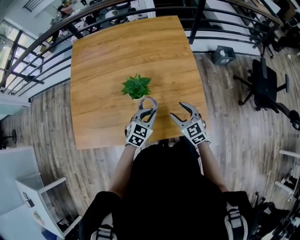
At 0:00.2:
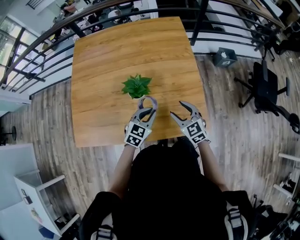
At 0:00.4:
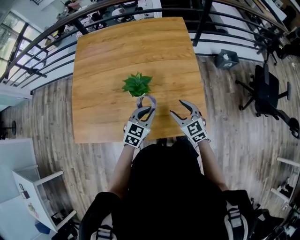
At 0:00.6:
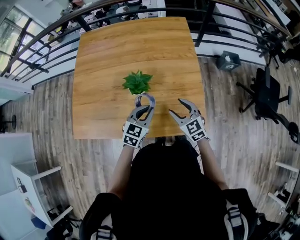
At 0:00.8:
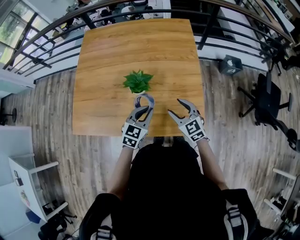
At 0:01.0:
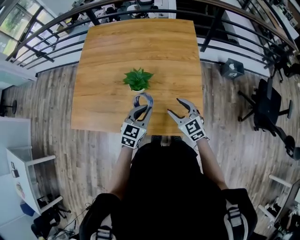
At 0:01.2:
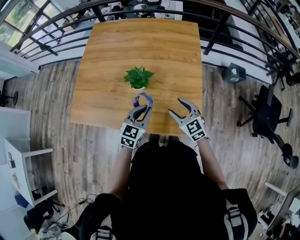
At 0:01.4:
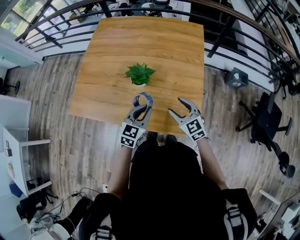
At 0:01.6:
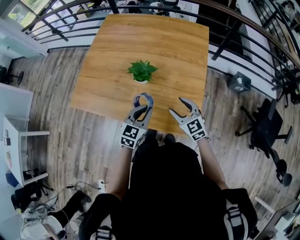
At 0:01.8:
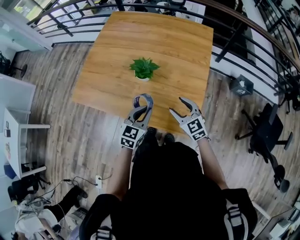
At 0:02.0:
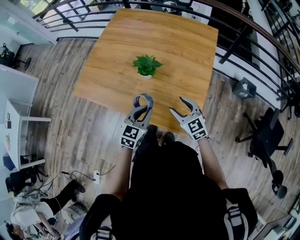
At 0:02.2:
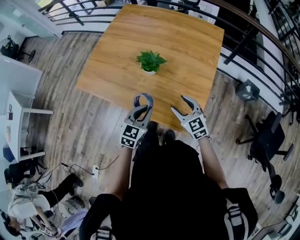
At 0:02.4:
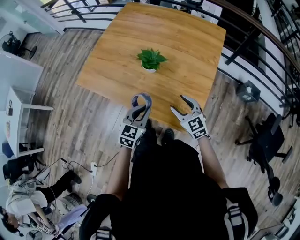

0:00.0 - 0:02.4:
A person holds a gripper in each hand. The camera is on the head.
0:00.0 - 0:01.2: The left gripper shifts roughly 10 cm upward, and rotates roughly 20 degrees.
0:01.2 - 0:02.4: The left gripper heads backward, covering some 10 cm.

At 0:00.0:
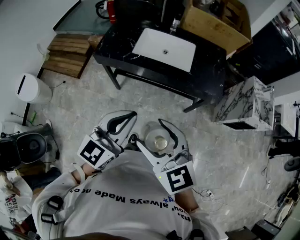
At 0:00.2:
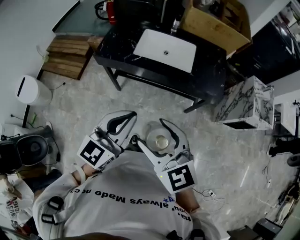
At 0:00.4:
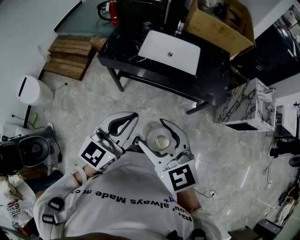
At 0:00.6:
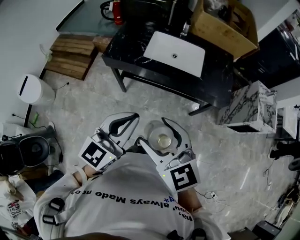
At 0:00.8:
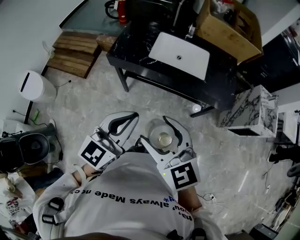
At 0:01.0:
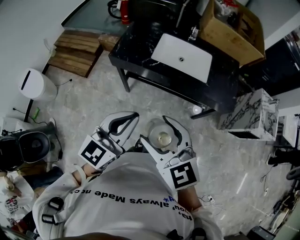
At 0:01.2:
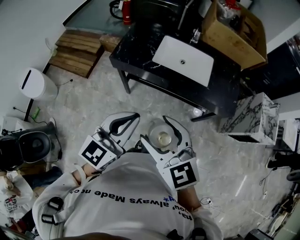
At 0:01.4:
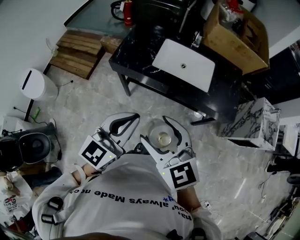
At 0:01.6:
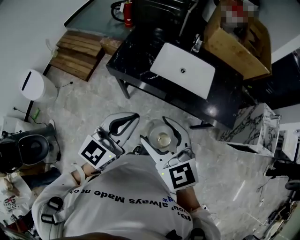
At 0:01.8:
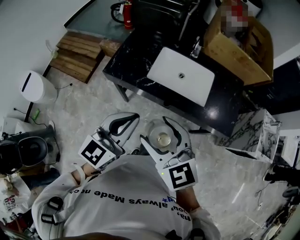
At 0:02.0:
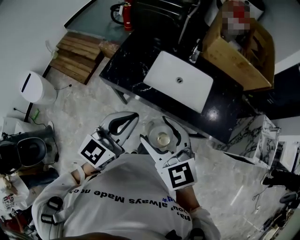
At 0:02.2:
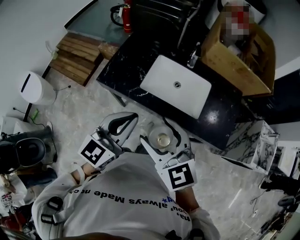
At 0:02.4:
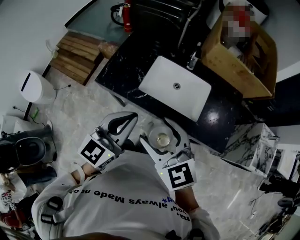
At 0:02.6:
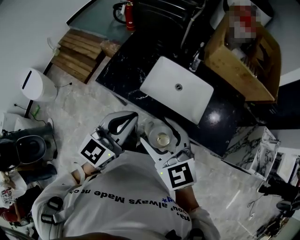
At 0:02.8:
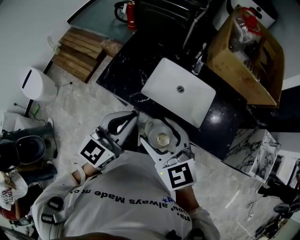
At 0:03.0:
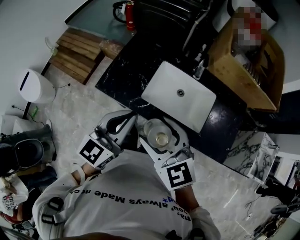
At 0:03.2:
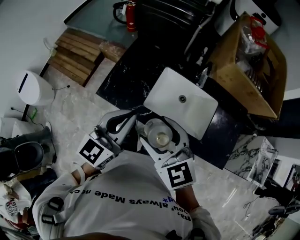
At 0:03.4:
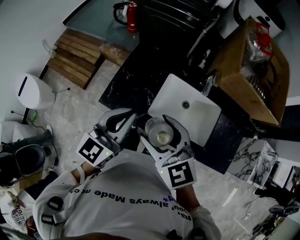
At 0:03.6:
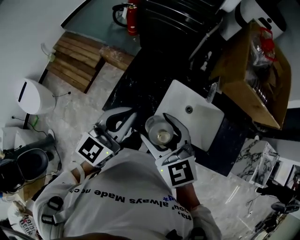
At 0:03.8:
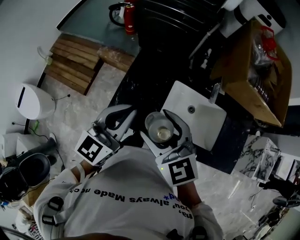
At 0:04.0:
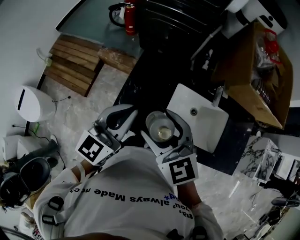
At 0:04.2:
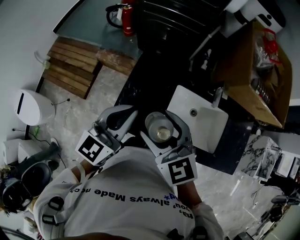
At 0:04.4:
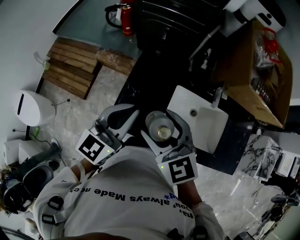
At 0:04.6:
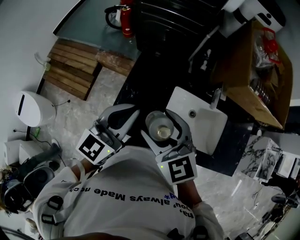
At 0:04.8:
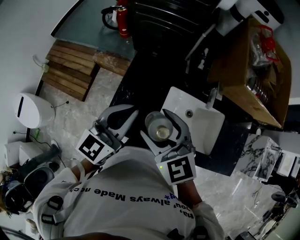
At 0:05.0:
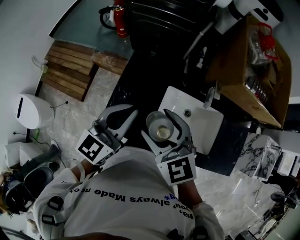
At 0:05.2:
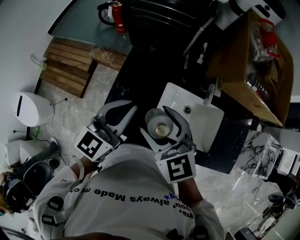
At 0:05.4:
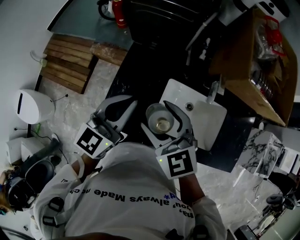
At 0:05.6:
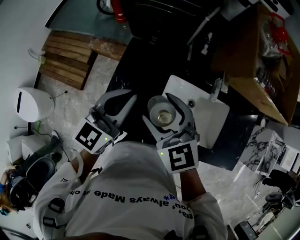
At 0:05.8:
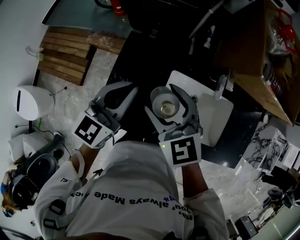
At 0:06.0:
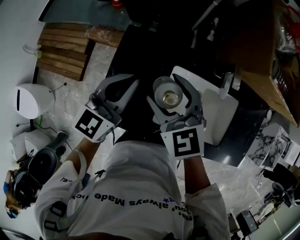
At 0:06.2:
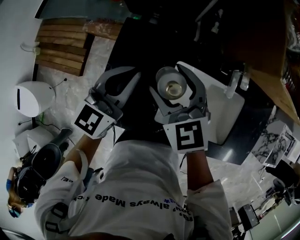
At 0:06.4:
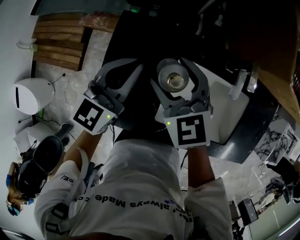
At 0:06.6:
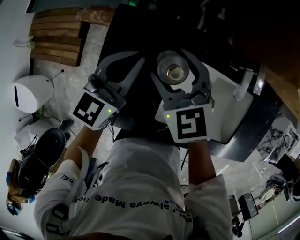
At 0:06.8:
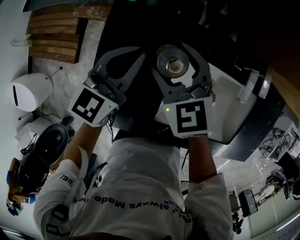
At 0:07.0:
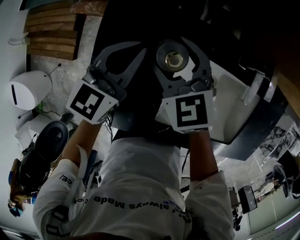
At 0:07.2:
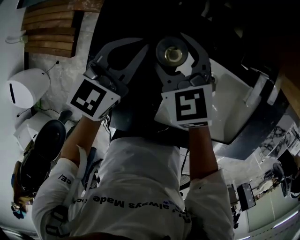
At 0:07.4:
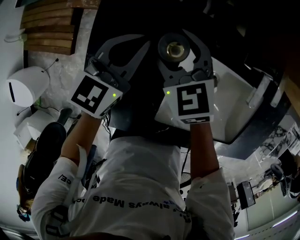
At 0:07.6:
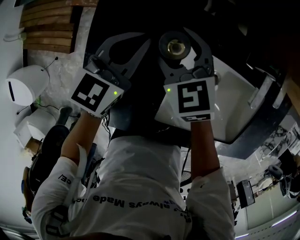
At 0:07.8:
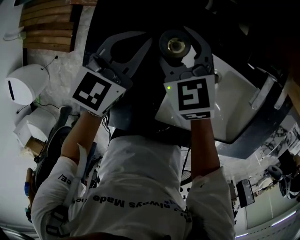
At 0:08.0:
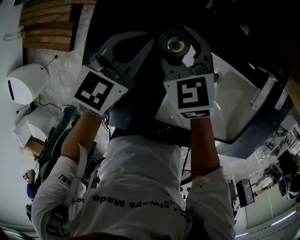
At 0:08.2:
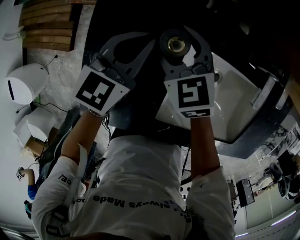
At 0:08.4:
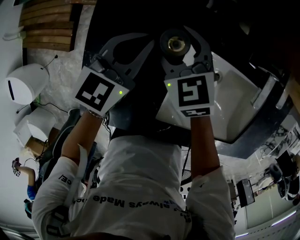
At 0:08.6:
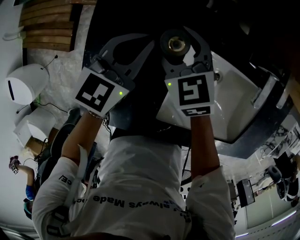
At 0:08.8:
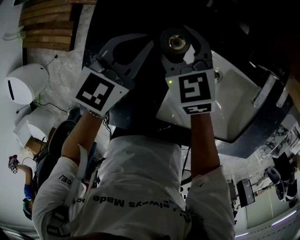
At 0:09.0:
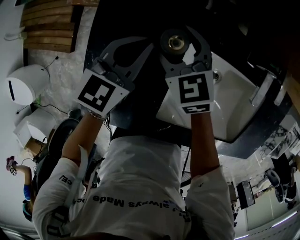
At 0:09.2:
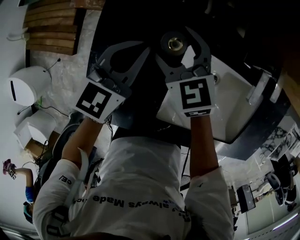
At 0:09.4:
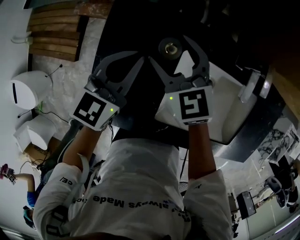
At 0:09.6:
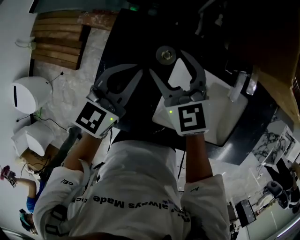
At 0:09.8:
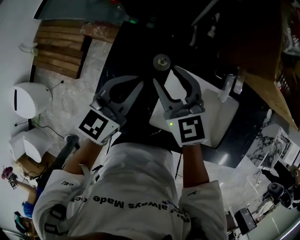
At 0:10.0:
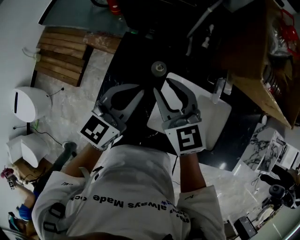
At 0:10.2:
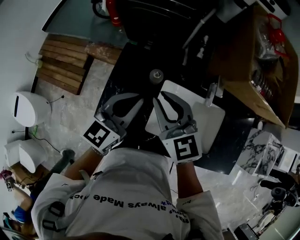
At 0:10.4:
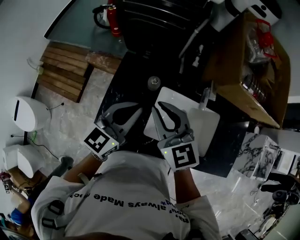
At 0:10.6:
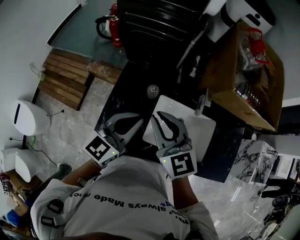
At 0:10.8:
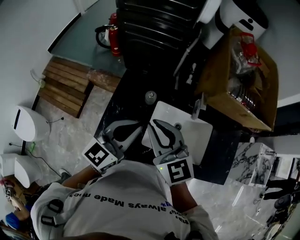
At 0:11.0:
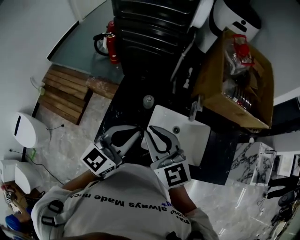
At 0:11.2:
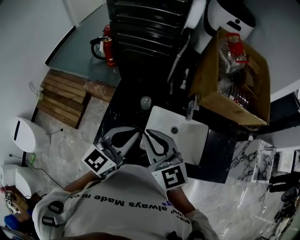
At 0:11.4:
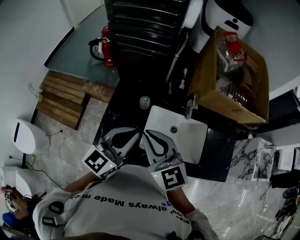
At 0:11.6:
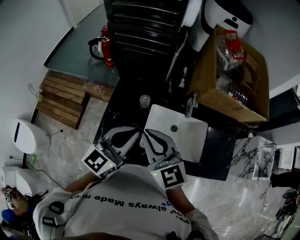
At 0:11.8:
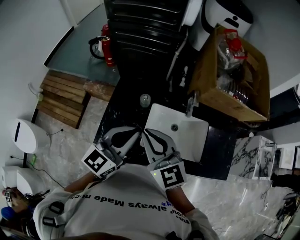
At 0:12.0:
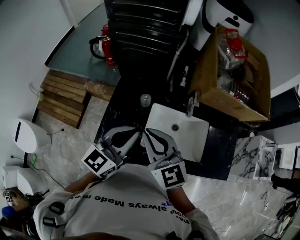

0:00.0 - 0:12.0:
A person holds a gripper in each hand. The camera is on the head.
0:00.0 - 0:01.6: The grippers both shift forward and to the left by roughly 15 cm.
0:01.6 - 0:03.0: The grippers both shift forward by roughly 20 cm.
0:03.0 - 0:04.4: Both grippers move forward and to the left, approximately 25 cm.
0:04.4 - 0:06.0: Both grippers travel together forward, downward and to the right, approximately 15 cm.
0:06.0 - 0:07.6: The grippers both shift downward and forward by roughly 20 cm.
0:07.6 - 0:09.0: The grippers make only small movements.
0:09.0 - 0:10.4: The two grippers go about 30 cm upward and backward. The right gripper closes its fingers.
0:10.4 - 0:12.0: Both grippers travel together backward and upward, approximately 10 cm.

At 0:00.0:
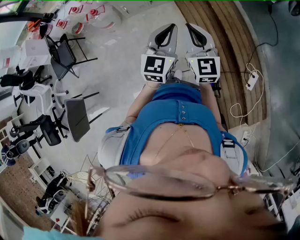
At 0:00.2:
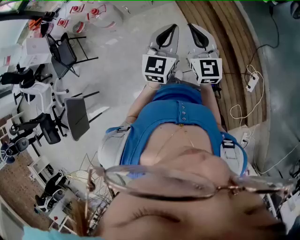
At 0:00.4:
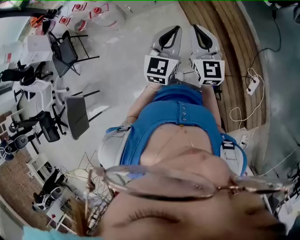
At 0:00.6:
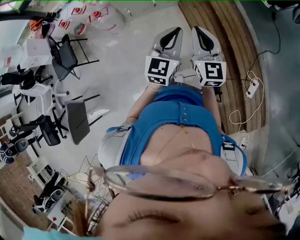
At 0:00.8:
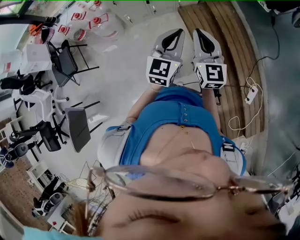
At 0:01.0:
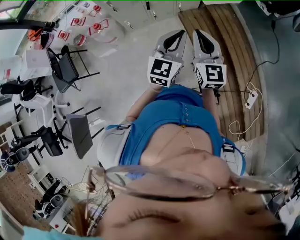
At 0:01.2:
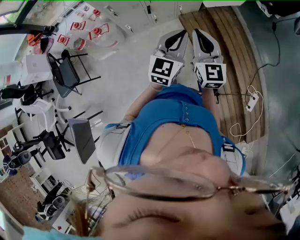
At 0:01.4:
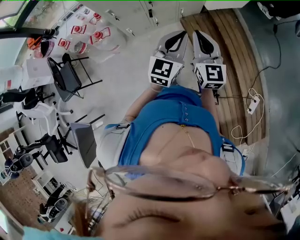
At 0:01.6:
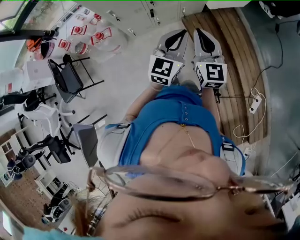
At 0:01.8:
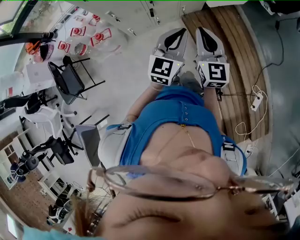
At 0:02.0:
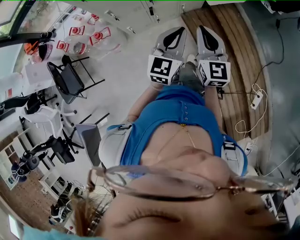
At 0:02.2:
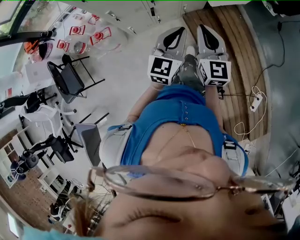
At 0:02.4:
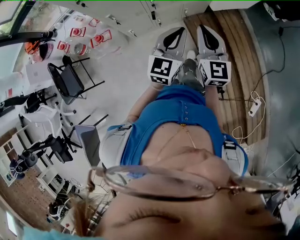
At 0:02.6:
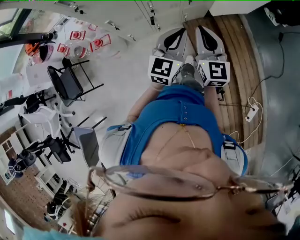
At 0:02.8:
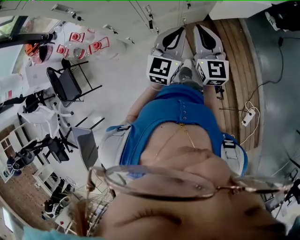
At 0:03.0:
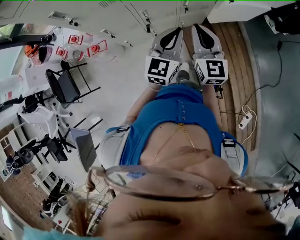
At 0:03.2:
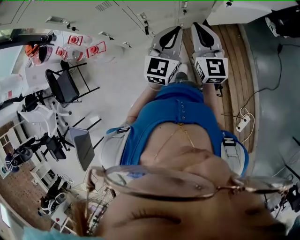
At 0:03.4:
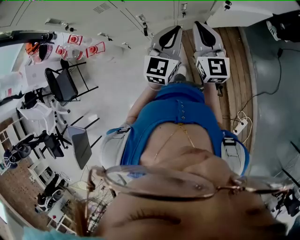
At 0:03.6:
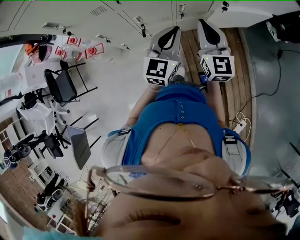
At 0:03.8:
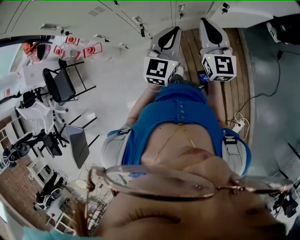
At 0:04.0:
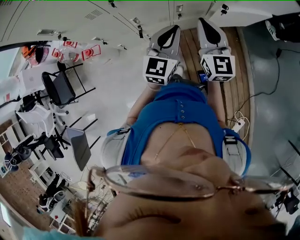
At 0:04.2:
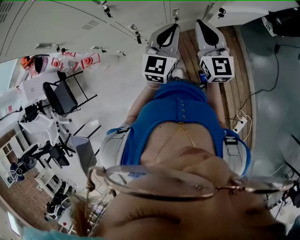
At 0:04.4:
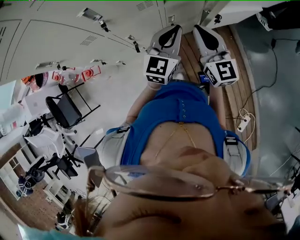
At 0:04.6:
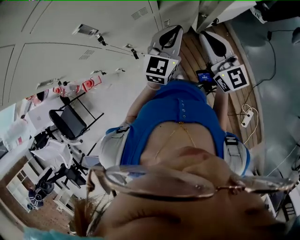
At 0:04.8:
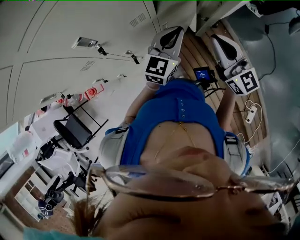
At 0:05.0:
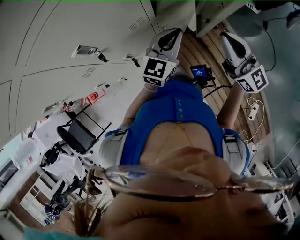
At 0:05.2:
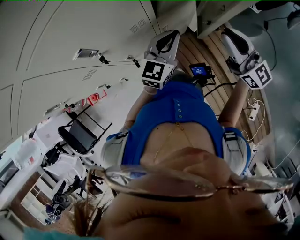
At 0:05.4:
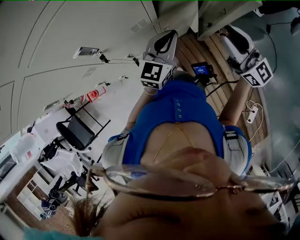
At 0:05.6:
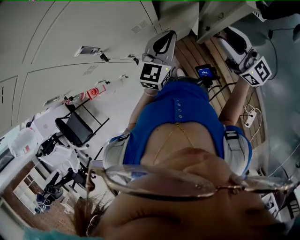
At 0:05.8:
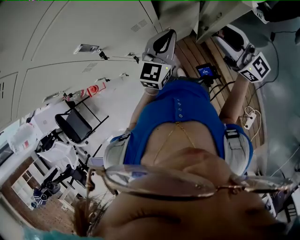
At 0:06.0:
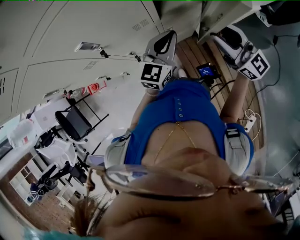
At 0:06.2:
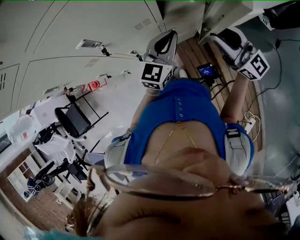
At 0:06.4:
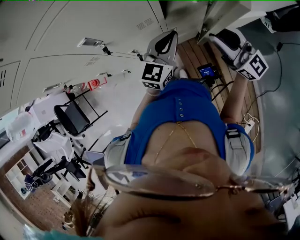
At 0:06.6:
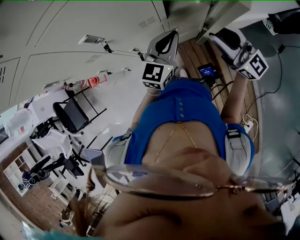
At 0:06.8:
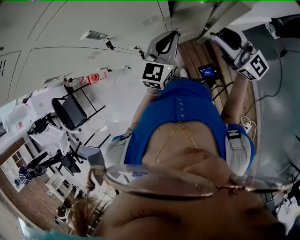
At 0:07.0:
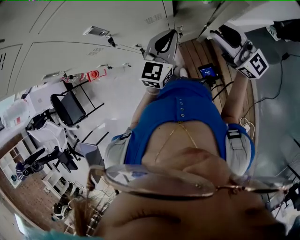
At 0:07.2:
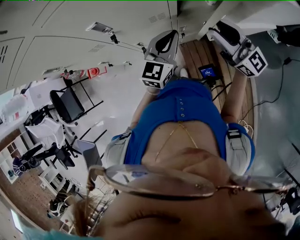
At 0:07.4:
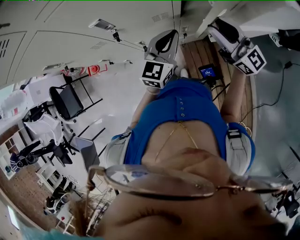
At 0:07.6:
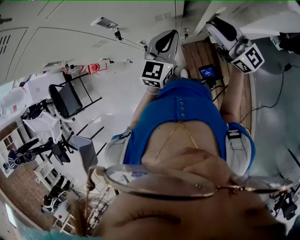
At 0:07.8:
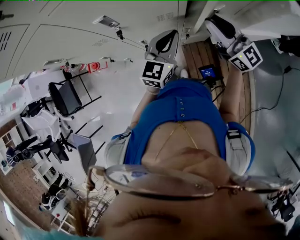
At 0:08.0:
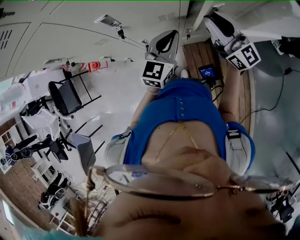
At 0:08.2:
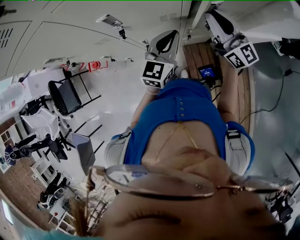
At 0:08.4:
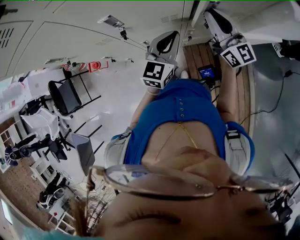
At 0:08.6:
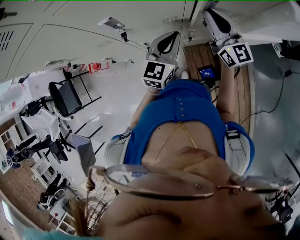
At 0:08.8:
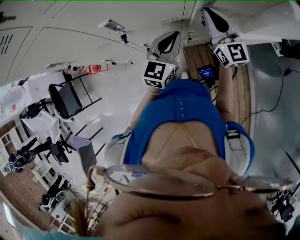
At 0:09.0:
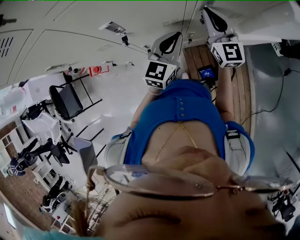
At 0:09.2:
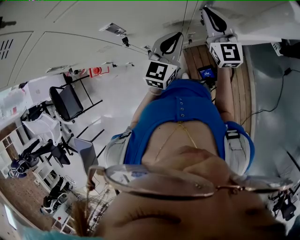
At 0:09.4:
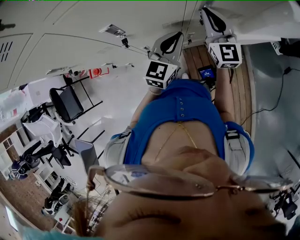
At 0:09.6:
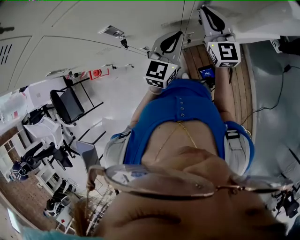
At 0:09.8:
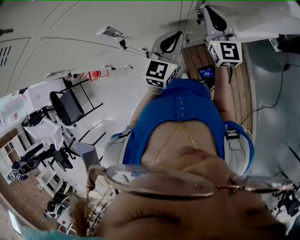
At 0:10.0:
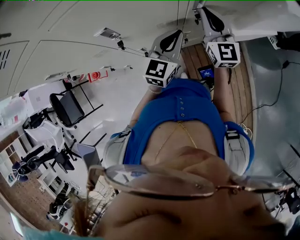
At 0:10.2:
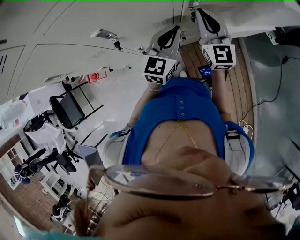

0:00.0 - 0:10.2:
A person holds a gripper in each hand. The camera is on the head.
0:00.0 - 0:01.4: Both grippers move forward, about 25 cm.
0:01.4 - 0:03.0: The two grippers go about 25 cm forward.
0:03.0 - 0:04.4: The grippers both shift forward and to the right by roughly 15 cm.
0:04.4 - 0:05.8: The right gripper goes approximately 10 cm to the right and forward, turns by some 20 degrees, and opens; the left gripper shifts roughly 5 cm forward.
0:05.8 - 0:07.2: The right gripper moves to the left and forward, approximately 10 cm. The left gripper shifts roughly 5 cm to the left.
0:07.2 - 0:08.8: The right gripper travels forward by approximately 10 cm, rotates some 20 degrees, and closes its fingers.
0:08.8 - 0:10.2: There are only small adjustments of the grippers.
